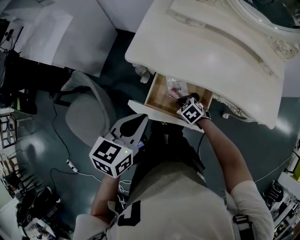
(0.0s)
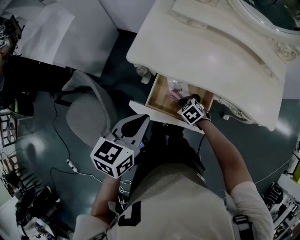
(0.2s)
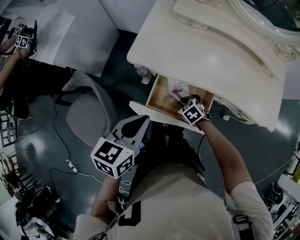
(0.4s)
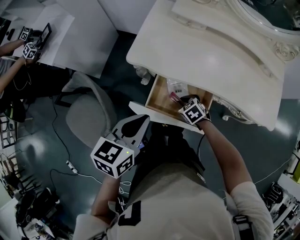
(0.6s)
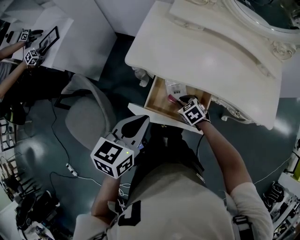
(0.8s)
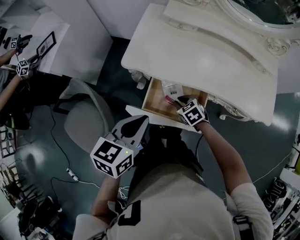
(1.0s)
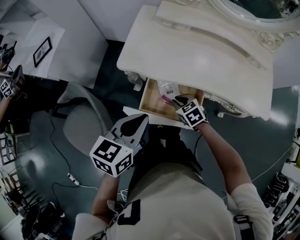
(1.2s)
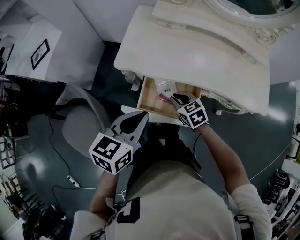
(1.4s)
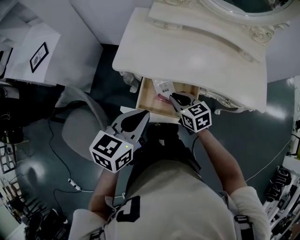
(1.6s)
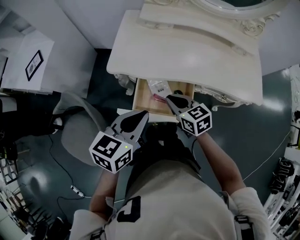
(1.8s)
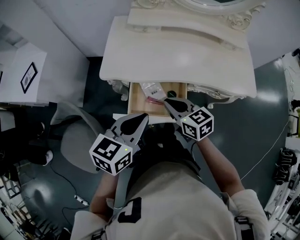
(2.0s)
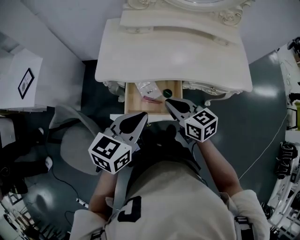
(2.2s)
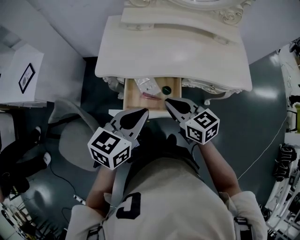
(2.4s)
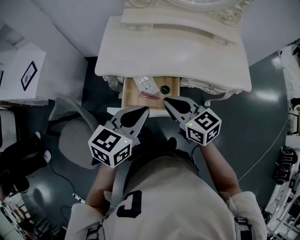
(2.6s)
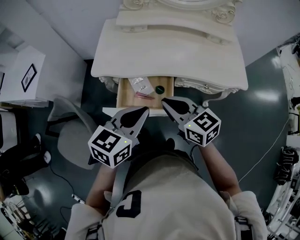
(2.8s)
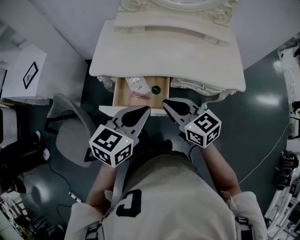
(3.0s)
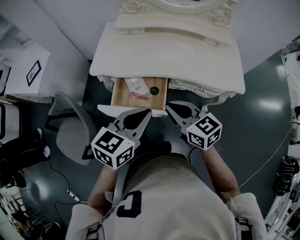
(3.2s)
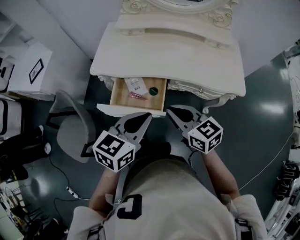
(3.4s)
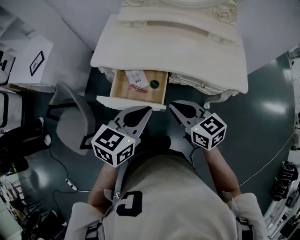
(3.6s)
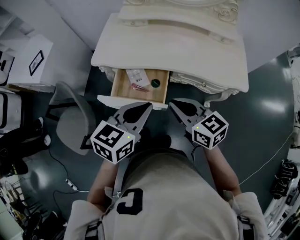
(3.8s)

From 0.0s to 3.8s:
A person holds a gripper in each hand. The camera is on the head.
From 0.0s to 1.2s: The right gripper goes about 5 cm upward.
From 1.2s to 2.6s: The left gripper is displaced to the right by roughly 10 cm. Meanwhile the right gripper heads upward, covering roughly 20 cm, and tips its fingers upward by some 30 degrees.
From 2.6s to 3.8s: The left gripper shifts approximately 10 cm to the right, while the right gripper goes approximately 10 cm to the right and backward.

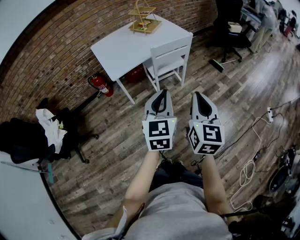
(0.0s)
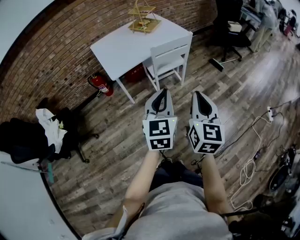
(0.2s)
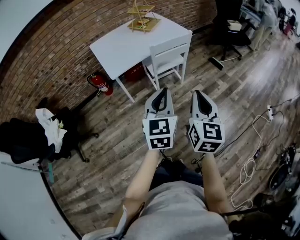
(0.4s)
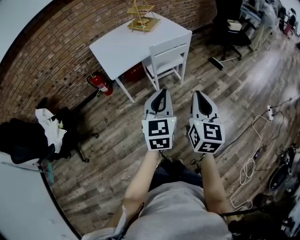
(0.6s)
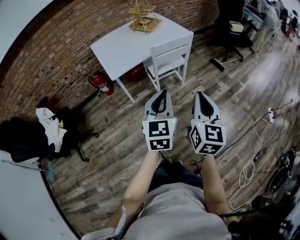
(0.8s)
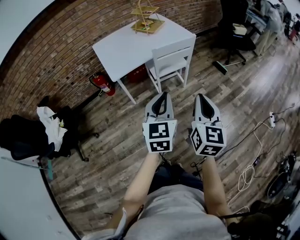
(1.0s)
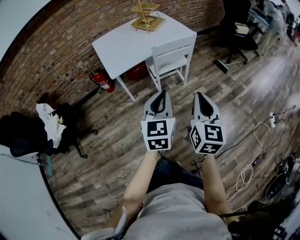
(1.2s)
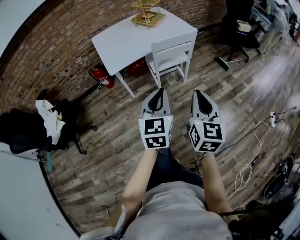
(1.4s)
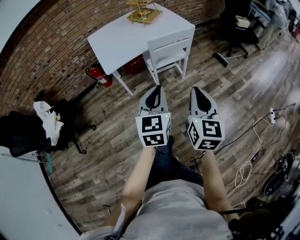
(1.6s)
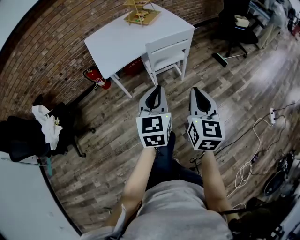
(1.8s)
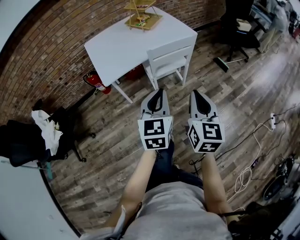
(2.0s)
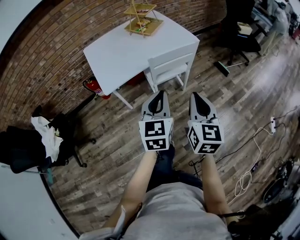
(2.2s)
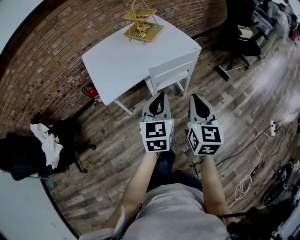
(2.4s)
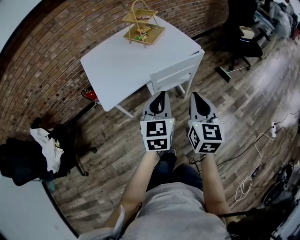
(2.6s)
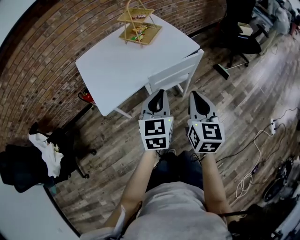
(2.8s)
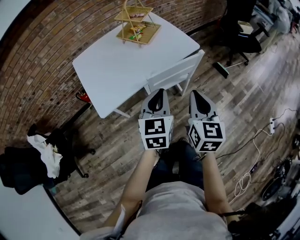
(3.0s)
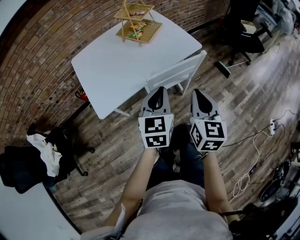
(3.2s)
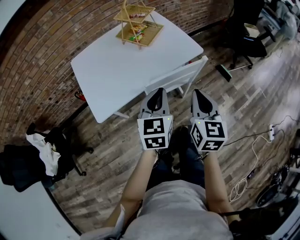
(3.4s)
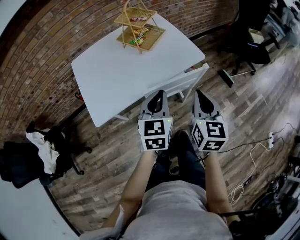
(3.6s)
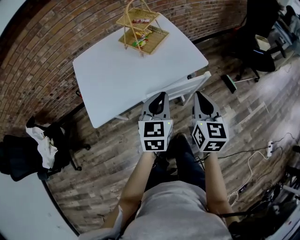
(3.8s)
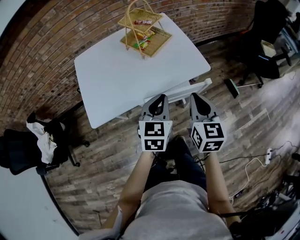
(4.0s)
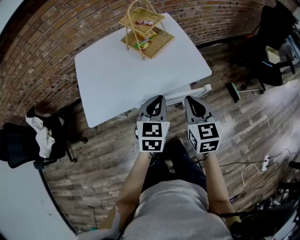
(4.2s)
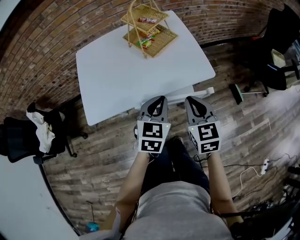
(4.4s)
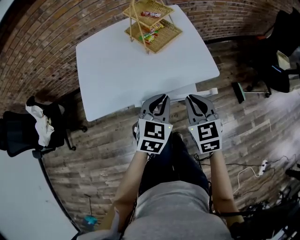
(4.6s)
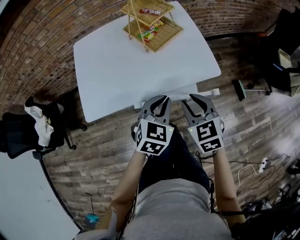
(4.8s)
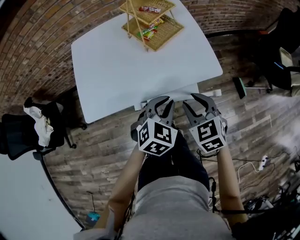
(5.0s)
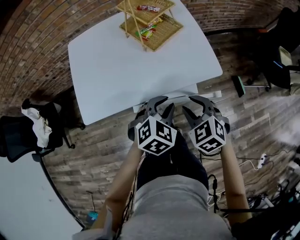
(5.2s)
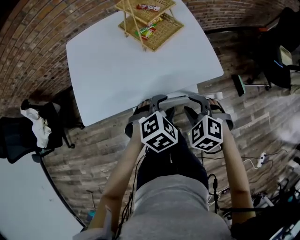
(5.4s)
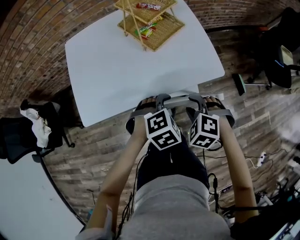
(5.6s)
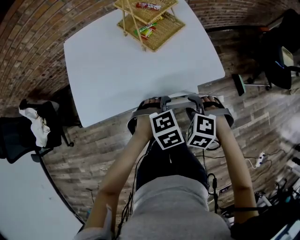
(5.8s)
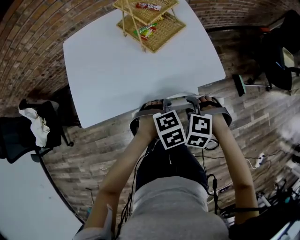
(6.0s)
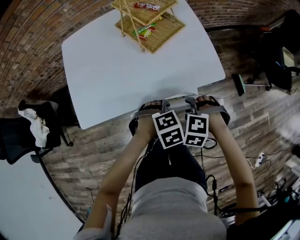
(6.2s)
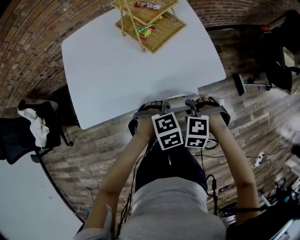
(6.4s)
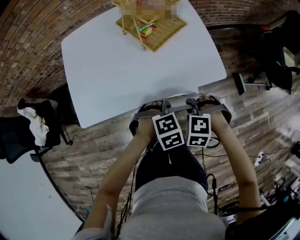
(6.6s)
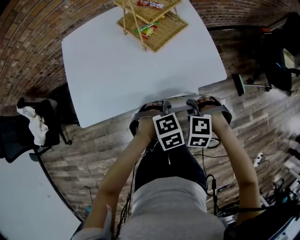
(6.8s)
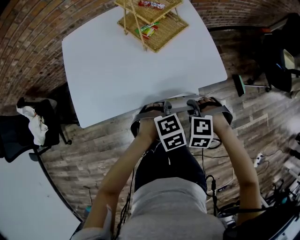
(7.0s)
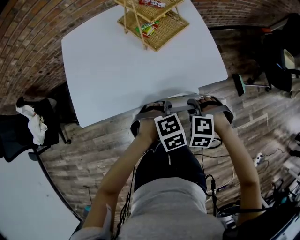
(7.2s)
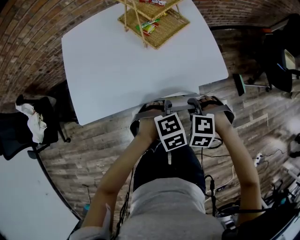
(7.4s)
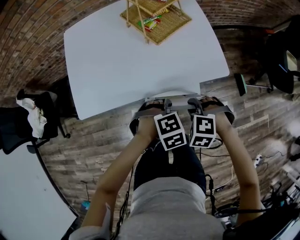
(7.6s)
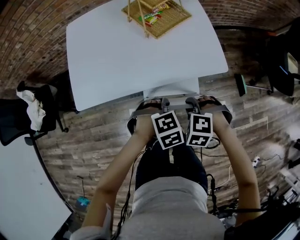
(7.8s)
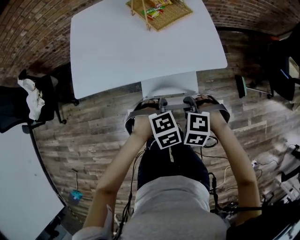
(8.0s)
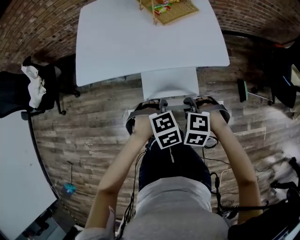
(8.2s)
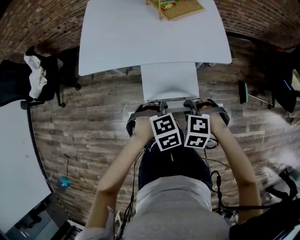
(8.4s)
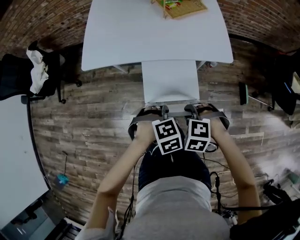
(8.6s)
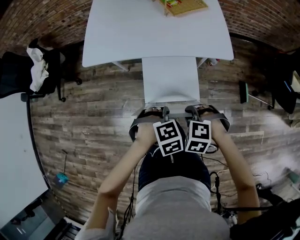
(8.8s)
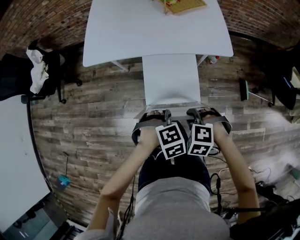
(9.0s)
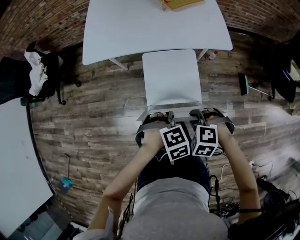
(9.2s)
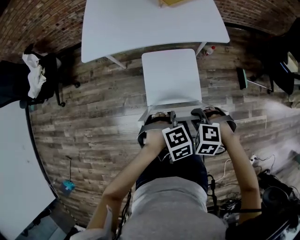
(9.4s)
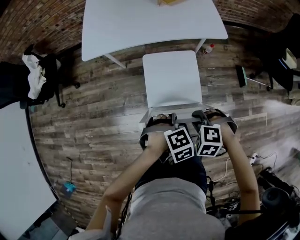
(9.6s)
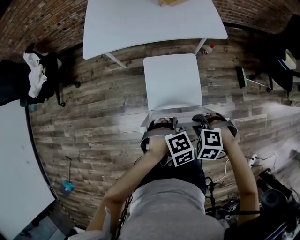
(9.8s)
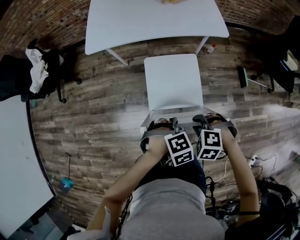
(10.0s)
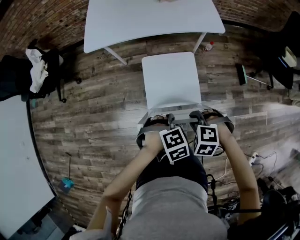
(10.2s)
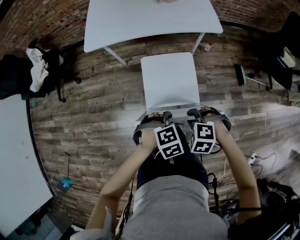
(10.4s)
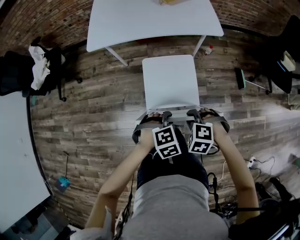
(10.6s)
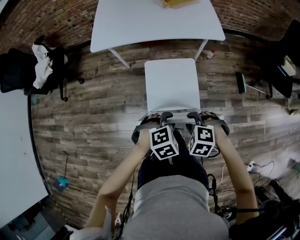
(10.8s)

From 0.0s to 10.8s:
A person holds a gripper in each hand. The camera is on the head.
From 0.0s to 1.6s: The two grippers go roughly 5 cm forward.
From 1.6s to 3.0s: Both grippers move forward, approximately 30 cm.
From 3.0s to 4.6s: The left gripper moves forward and to the right, some 20 cm, while the right gripper is displaced forward by some 20 cm, and rotates about 40 degrees.
From 4.6s to 6.2s: The two grippers go roughly 15 cm downward. The left gripper points its fingers roughly 50 degrees further downward, and opens up. The right gripper points its fingers about 40 degrees further downward, and opens up.
From 6.2s to 7.8s: The left gripper closes up.
From 7.8s to 9.2s: The right gripper changes place by some 20 cm. Meanwhile the left gripper changes place by some 25 cm.
From 9.2s to 10.8s: The left gripper shifts by some 10 cm; the right gripper changes place by some 10 cm.

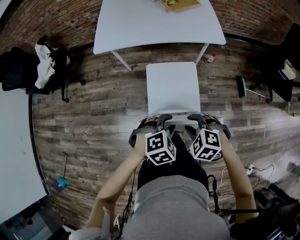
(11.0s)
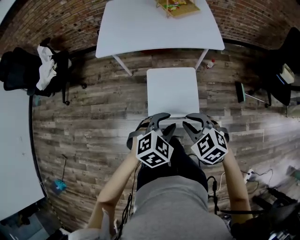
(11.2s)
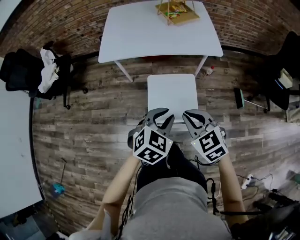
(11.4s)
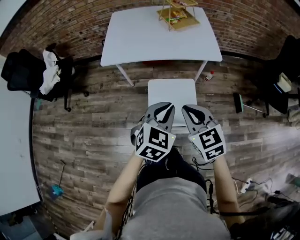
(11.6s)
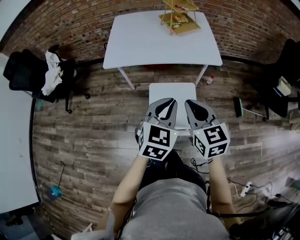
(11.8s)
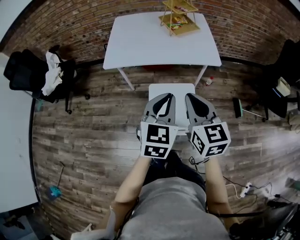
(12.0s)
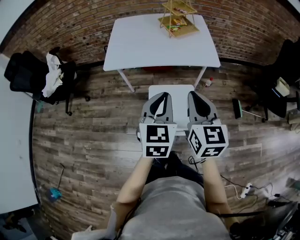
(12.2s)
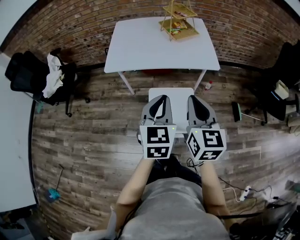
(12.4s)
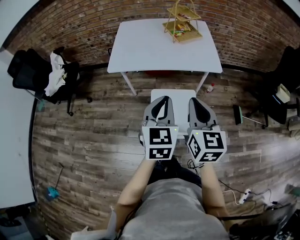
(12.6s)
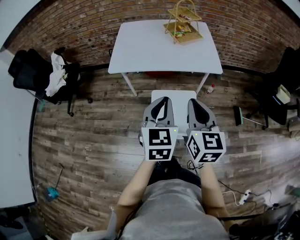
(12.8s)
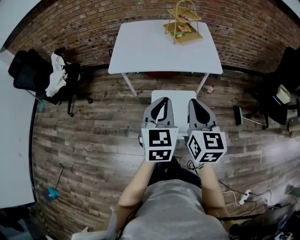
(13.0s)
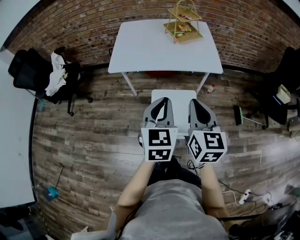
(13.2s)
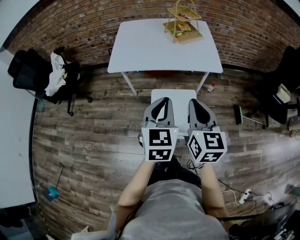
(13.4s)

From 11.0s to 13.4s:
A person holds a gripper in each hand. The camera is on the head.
From 11.0s to 12.2s: Both grippers travel together upward and forward, approximately 25 cm. The left gripper angles its fingers upward, by roughly 40 degrees, and closes. The right gripper tips its fingers upward by some 50 degrees, and closes.
From 12.2s to 13.4s: The grippers make only small movements.

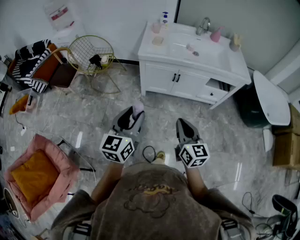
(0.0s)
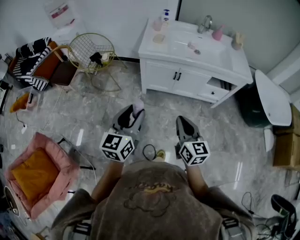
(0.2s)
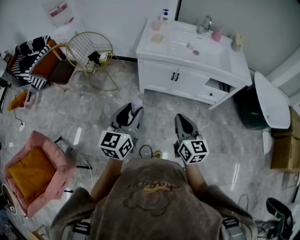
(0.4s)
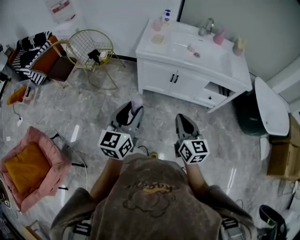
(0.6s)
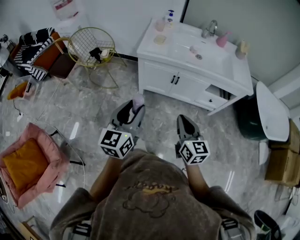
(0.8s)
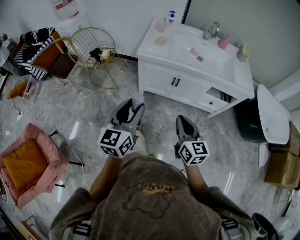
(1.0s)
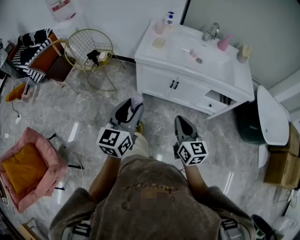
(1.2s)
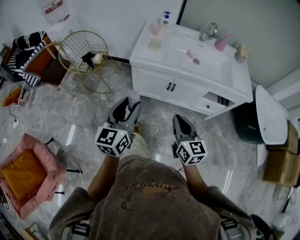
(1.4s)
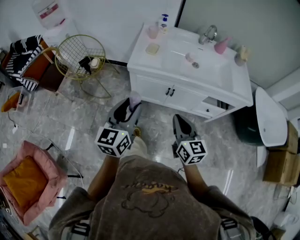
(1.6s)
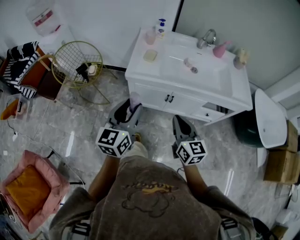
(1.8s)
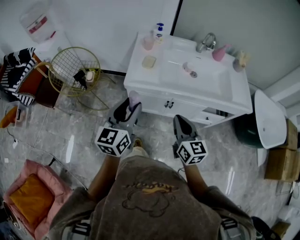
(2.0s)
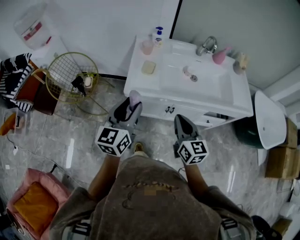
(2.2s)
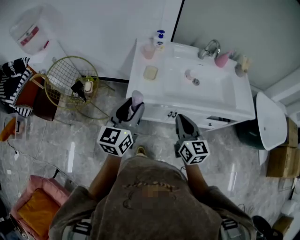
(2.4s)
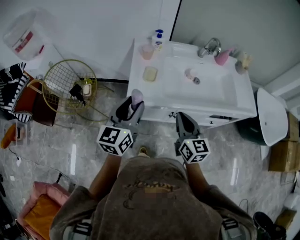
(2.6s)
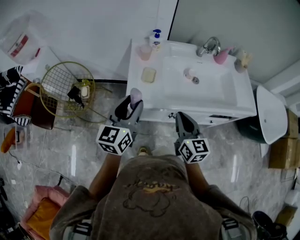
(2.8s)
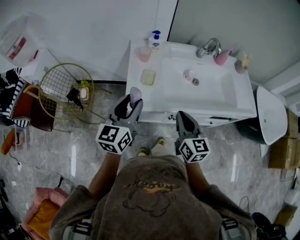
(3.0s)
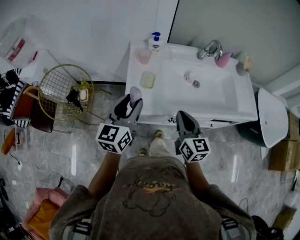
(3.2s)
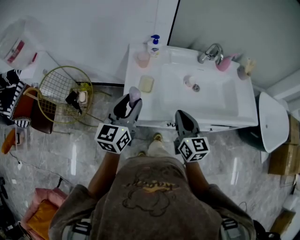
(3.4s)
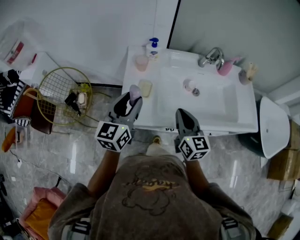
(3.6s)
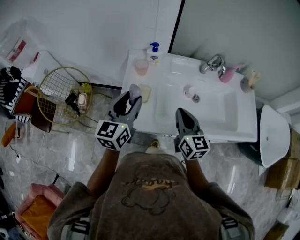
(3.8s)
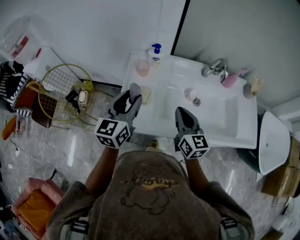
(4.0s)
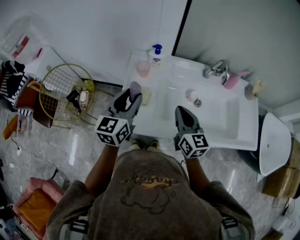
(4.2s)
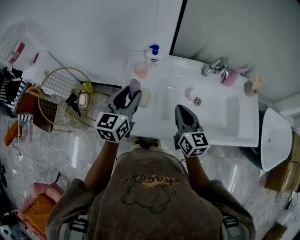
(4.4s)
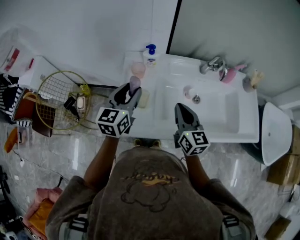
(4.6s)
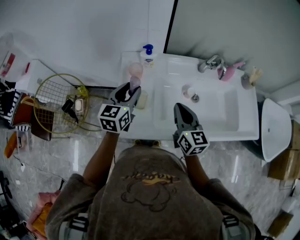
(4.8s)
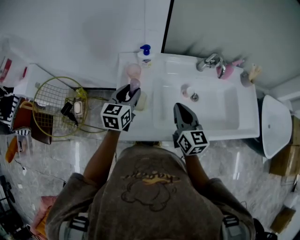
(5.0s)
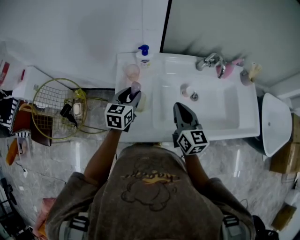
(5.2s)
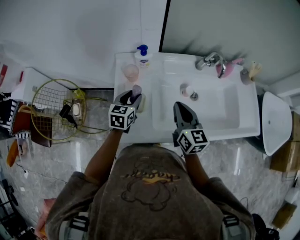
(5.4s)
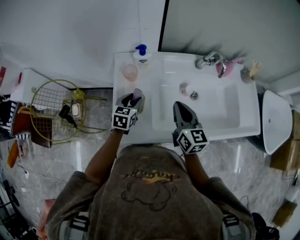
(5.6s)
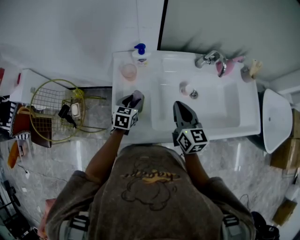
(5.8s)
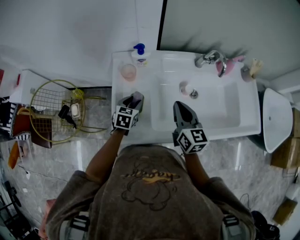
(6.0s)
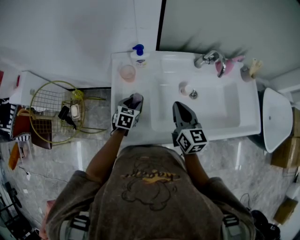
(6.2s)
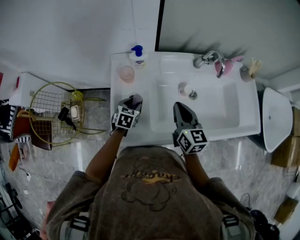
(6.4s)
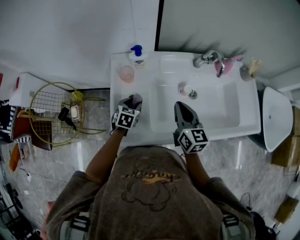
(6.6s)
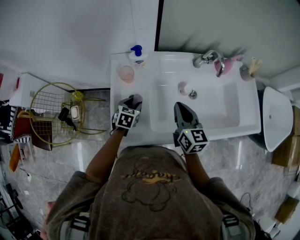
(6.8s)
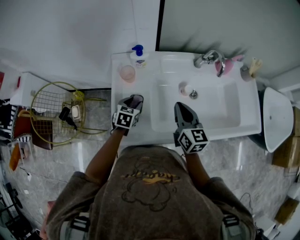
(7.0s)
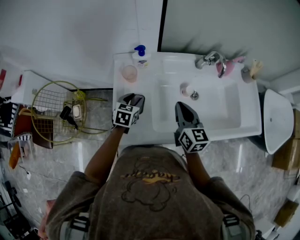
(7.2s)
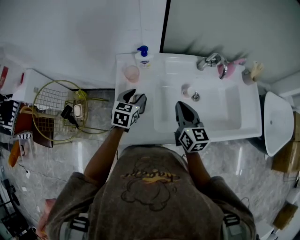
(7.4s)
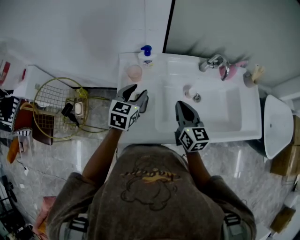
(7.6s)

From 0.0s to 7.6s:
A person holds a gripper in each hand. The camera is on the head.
From 0.0s to 1.6s: The two grippers go about 20 cm forward.
From 1.6s to 3.0s: The grippers both shift forward by approximately 30 cm.
From 3.0s to 4.6s: Both grippers move forward, approximately 20 cm.
From 4.6s to 6.0s: The left gripper moves downward, roughly 25 cm, and points its fingers some 30 degrees further downward. The right gripper ends up some 5 cm from where it was.
From 6.0s to 7.6s: The left gripper shifts roughly 15 cm upward.
